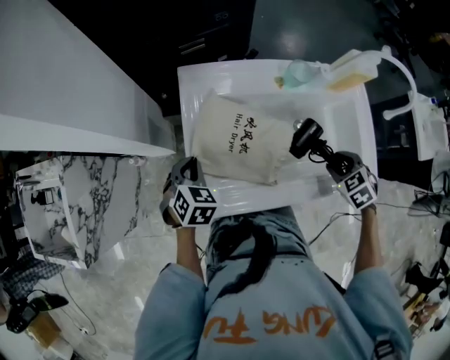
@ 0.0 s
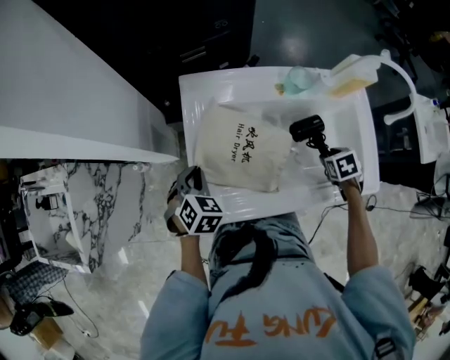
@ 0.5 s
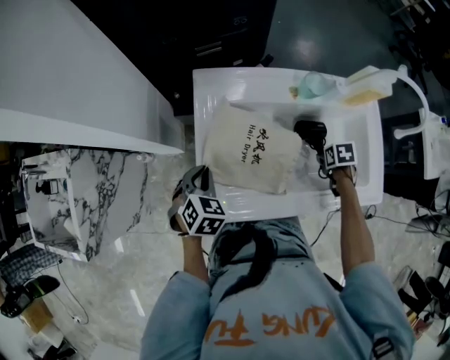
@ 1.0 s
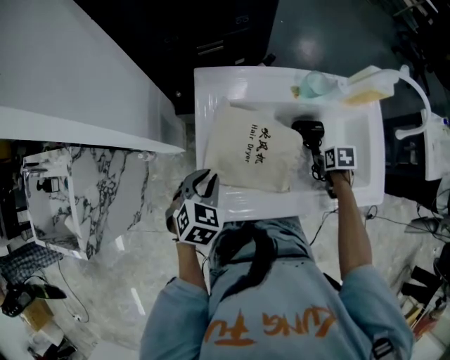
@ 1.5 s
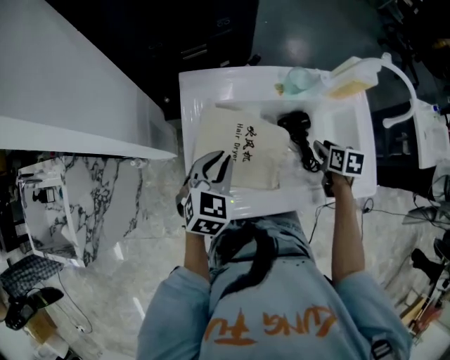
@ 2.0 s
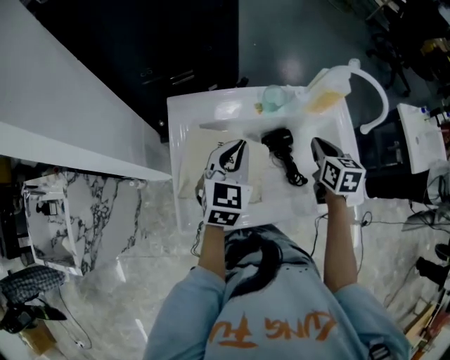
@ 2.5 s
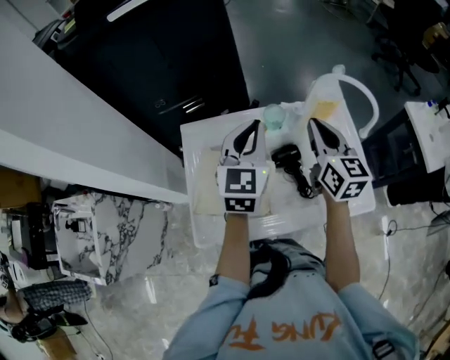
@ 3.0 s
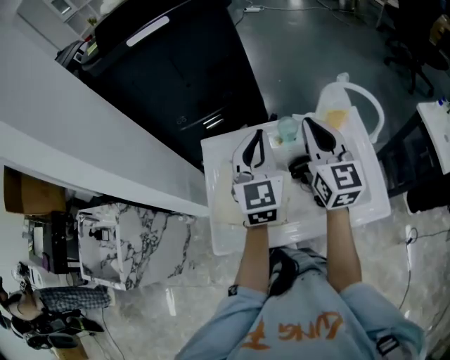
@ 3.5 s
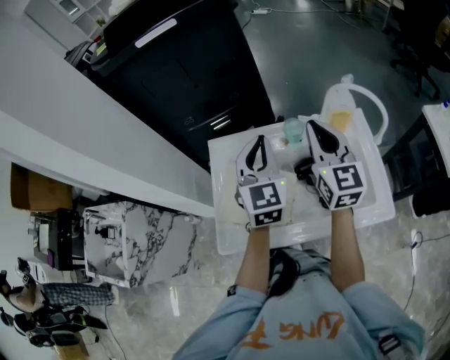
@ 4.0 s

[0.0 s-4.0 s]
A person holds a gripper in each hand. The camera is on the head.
0.0 to 2.0 s: The right gripper reaches about 10 cm downward, then returns, and rotates around the line of its fingers by roughly 50 degrees, clockwise from behind. Meanwhile the left gripper shifts by some 10 cm, and swivels about 20 degrees.
2.0 to 4.0 s: The right gripper shifts about 30 cm upward, points its fingers approximately 60 degrees further upward, and closes up. The left gripper is displaced upward, to the right and forward by approximately 25 cm, and turns by approximately 40 degrees.

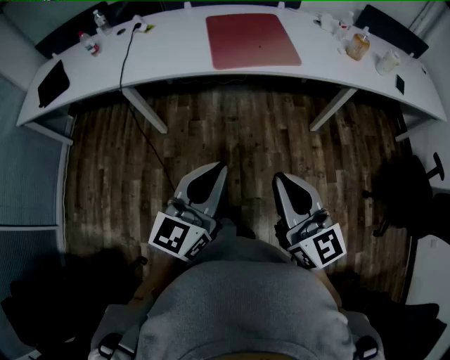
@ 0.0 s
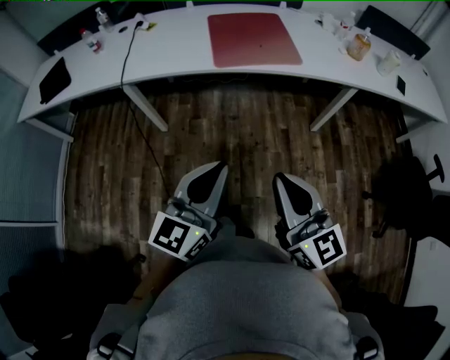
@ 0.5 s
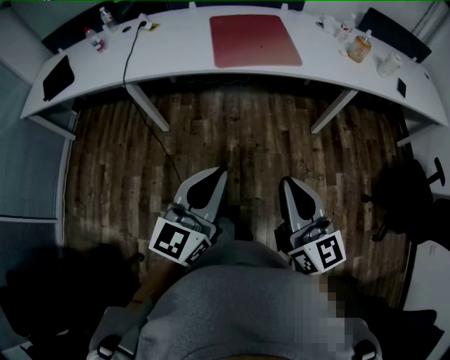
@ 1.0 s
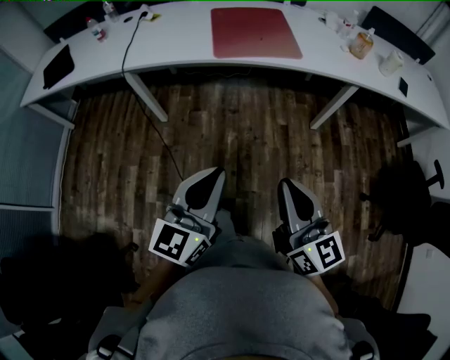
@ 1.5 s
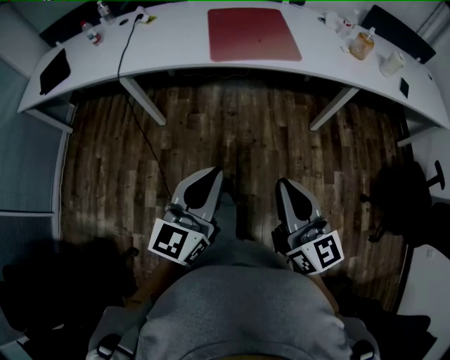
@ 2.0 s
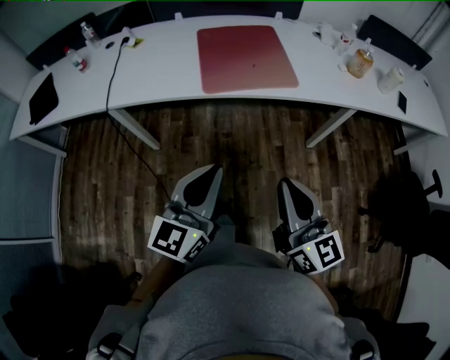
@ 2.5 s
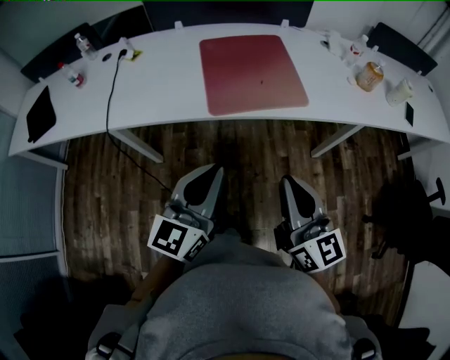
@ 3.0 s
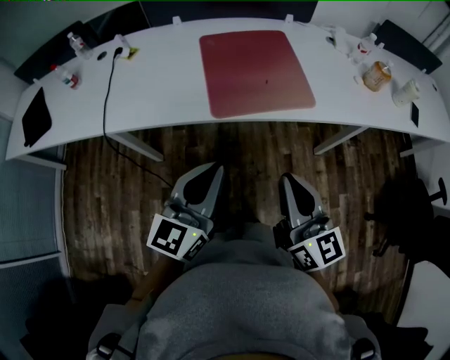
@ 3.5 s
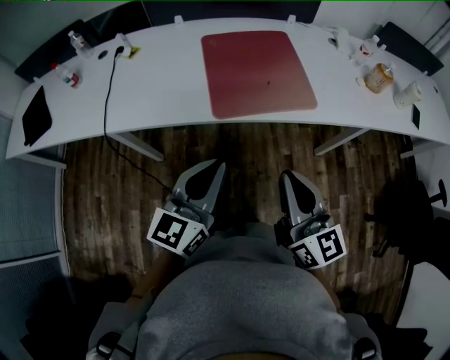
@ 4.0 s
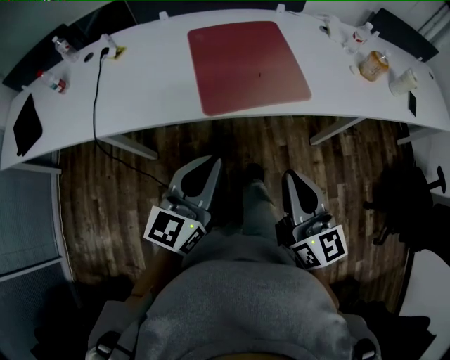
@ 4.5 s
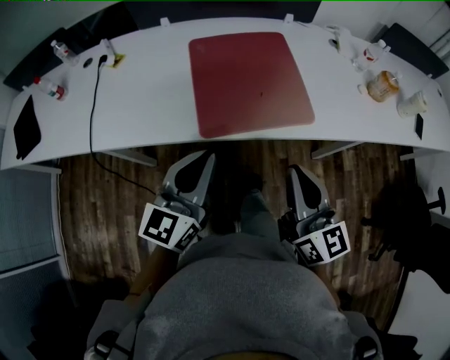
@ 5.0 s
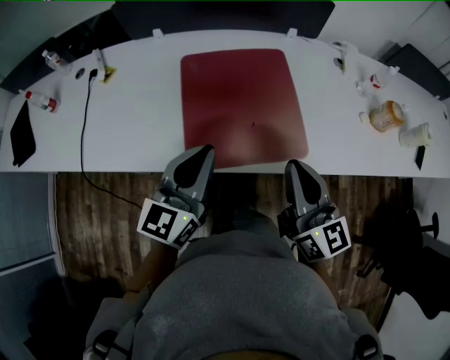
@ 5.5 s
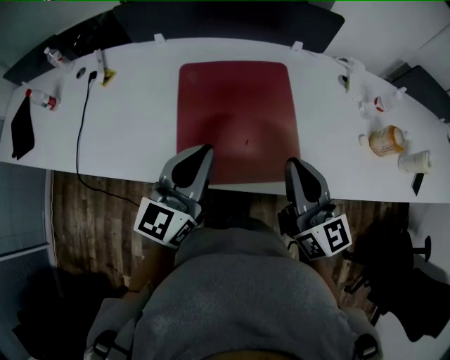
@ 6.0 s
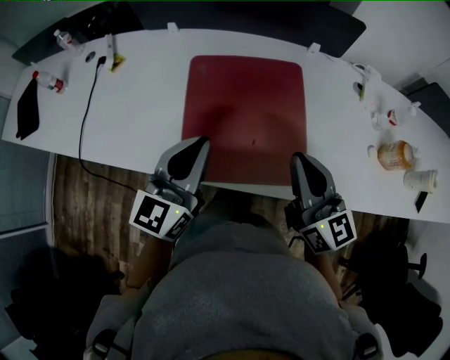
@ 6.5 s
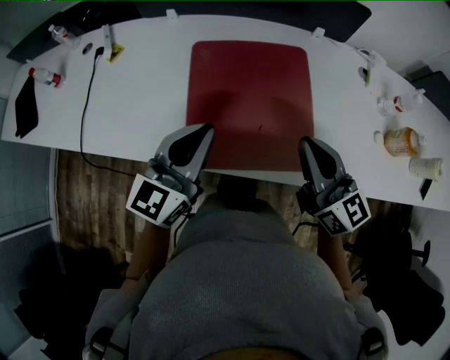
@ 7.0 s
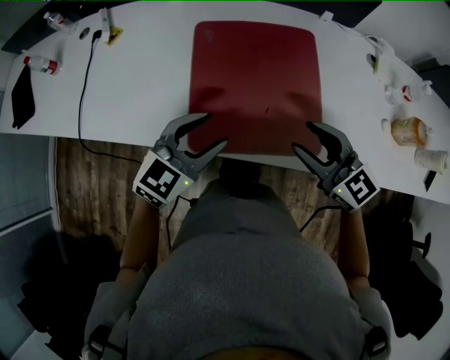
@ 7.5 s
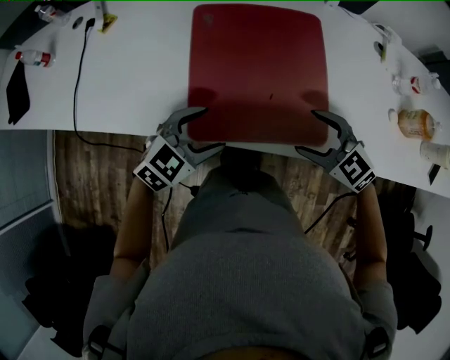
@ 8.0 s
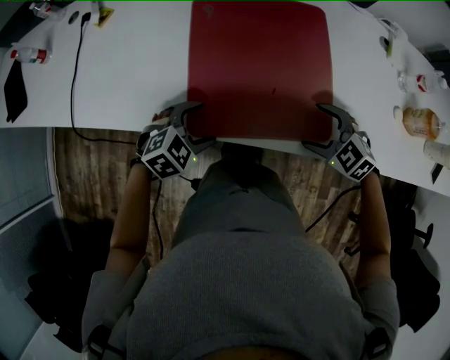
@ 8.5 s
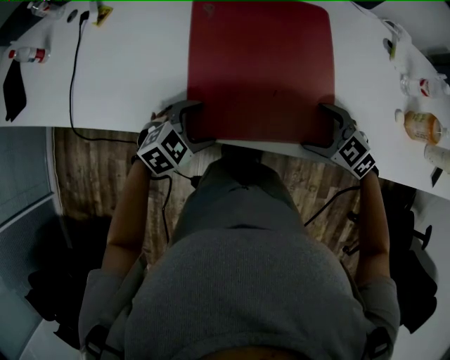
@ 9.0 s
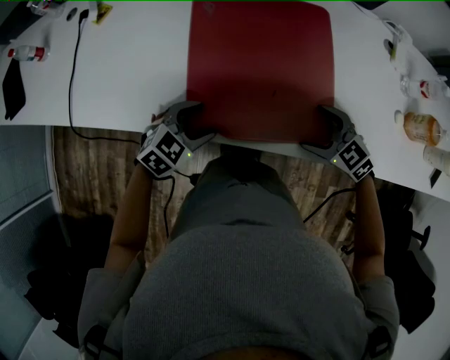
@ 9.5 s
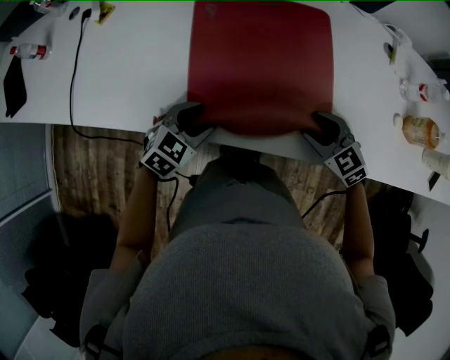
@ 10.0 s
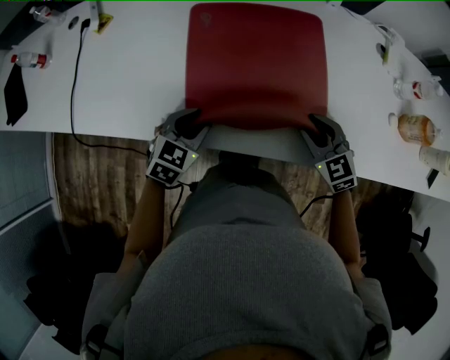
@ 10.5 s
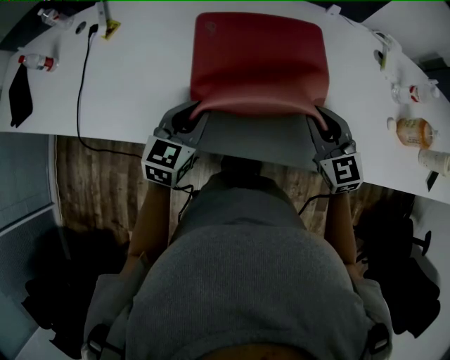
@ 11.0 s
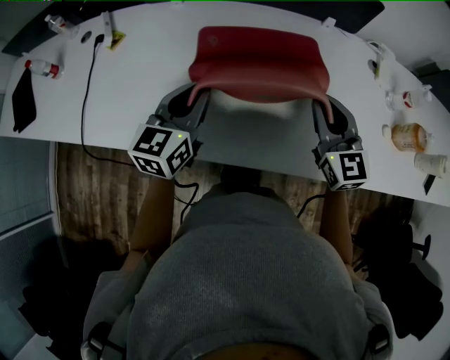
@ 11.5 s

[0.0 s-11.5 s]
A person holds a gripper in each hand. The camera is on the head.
0.0 to 2.0 s: The right gripper moves roughly 5 cm.
2.0 to 4.0 s: The grippers both shift forward by approximately 25 cm.
4.0 to 6.0 s: Both grippers move forward, roughly 30 cm.
6.0 to 7.5 s: The two grippers go approximately 10 cm downward. The left gripper swivels roughly 30 degrees, and opens up, while the right gripper rotates approximately 40 degrees, and opens up.
7.5 to 9.5 s: The grippers both shift downward by some 15 cm. The right gripper changes its angle by some 30 degrees, and opens its fingers, while the left gripper turns by about 20 degrees.
9.5 to 11.5 s: Both grippers travel together upward and forward, approximately 20 cm. The left gripper angles its fingers upward, by approximately 30 degrees, and closes. The right gripper tilts its fingers approximately 40 degrees upward, and closes its fingers.

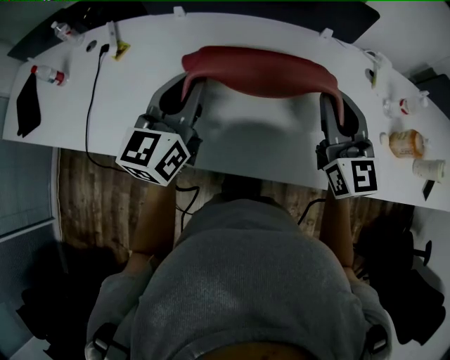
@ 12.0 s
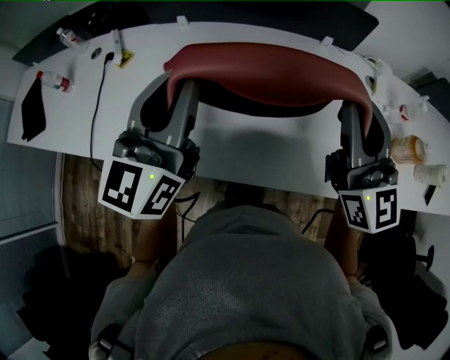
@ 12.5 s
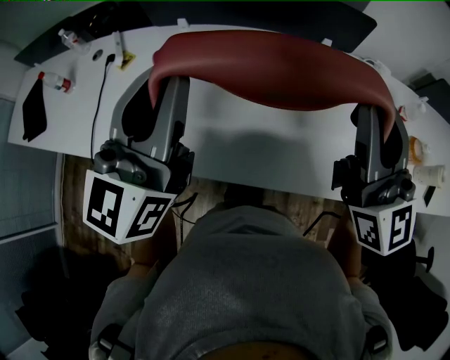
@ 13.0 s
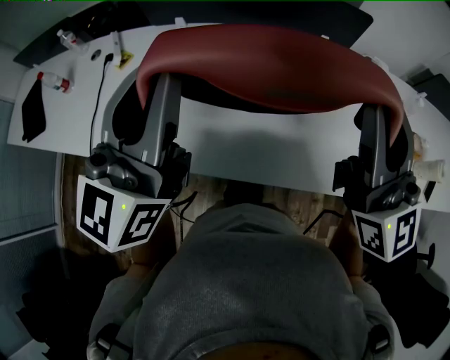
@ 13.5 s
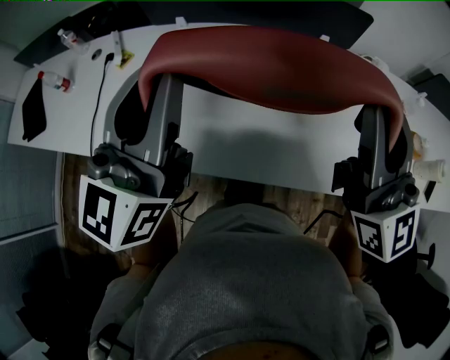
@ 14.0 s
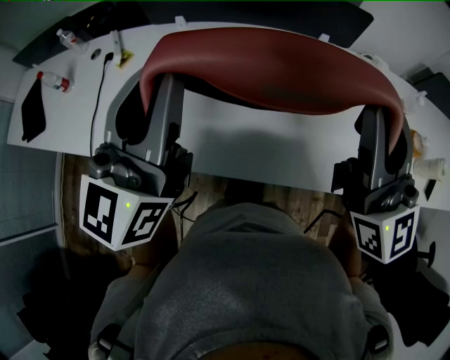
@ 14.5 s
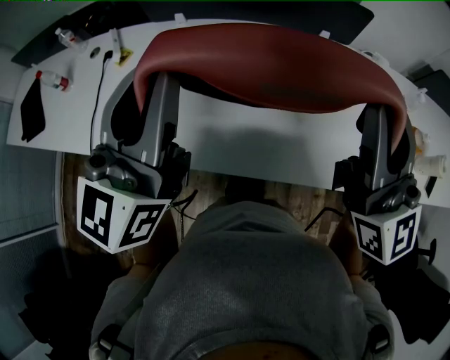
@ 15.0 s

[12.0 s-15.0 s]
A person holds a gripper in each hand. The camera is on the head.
12.0 to 13.5 s: The left gripper travels upward by some 15 cm; the right gripper shifts roughly 20 cm upward and backward.
13.5 to 15.0 s: Both grippers stay about where they are.

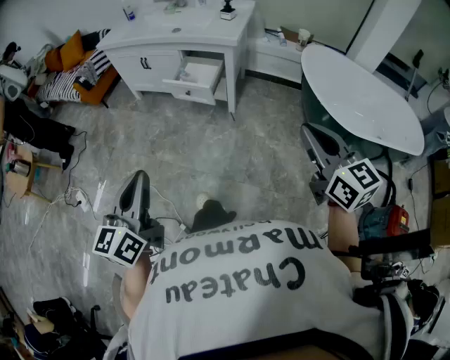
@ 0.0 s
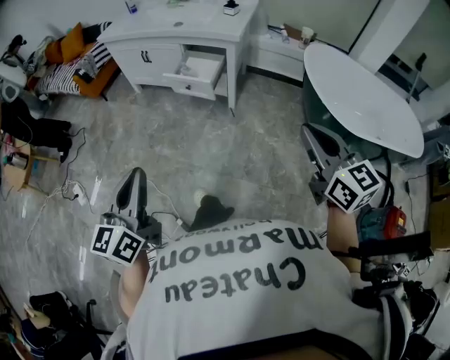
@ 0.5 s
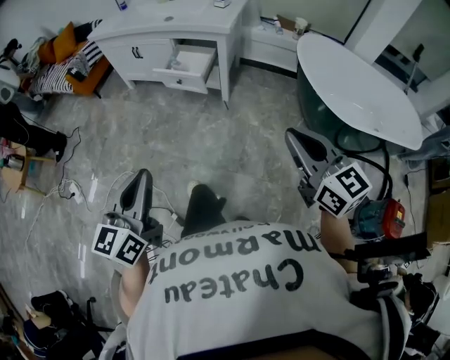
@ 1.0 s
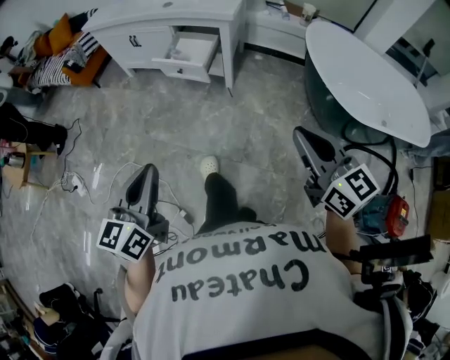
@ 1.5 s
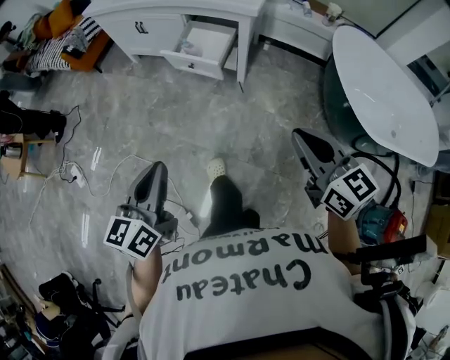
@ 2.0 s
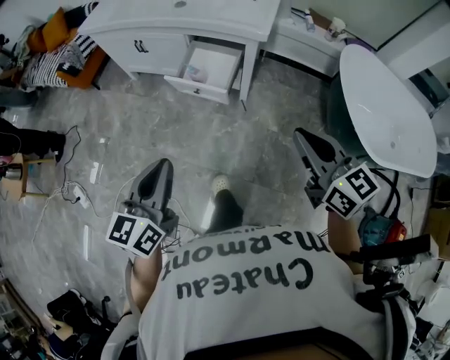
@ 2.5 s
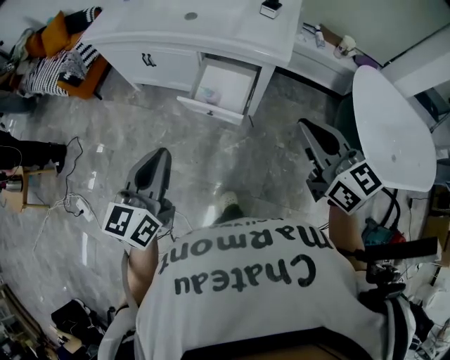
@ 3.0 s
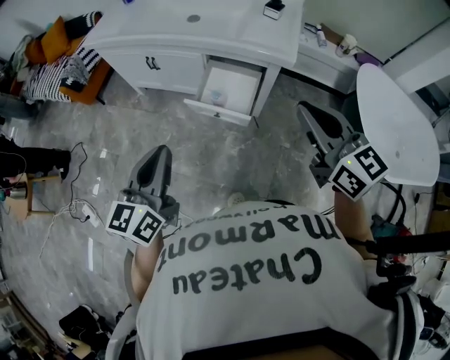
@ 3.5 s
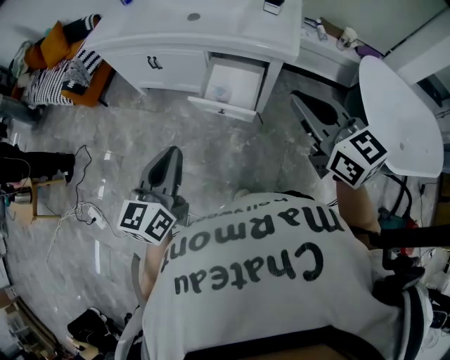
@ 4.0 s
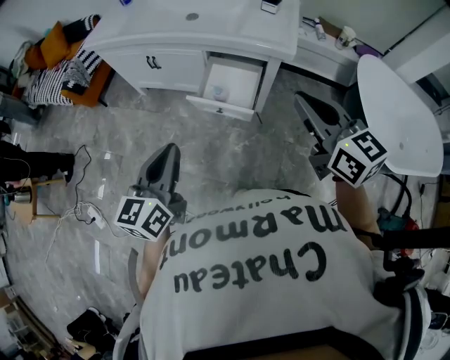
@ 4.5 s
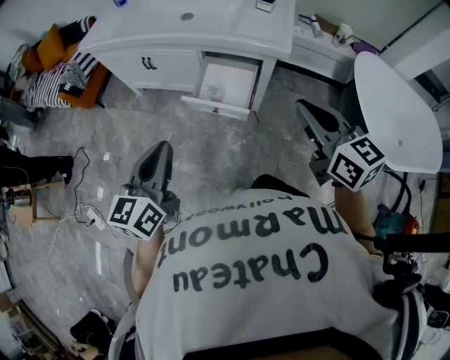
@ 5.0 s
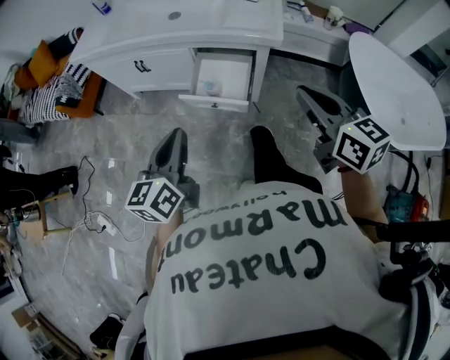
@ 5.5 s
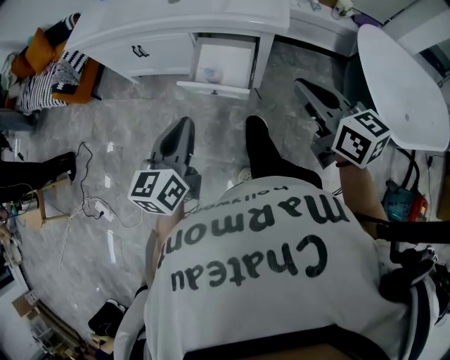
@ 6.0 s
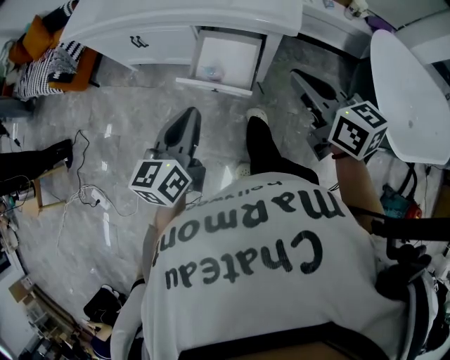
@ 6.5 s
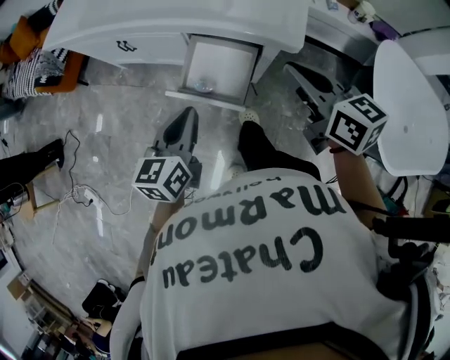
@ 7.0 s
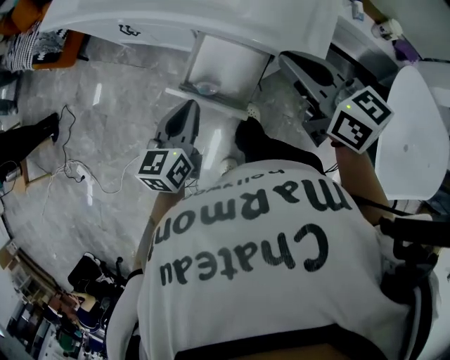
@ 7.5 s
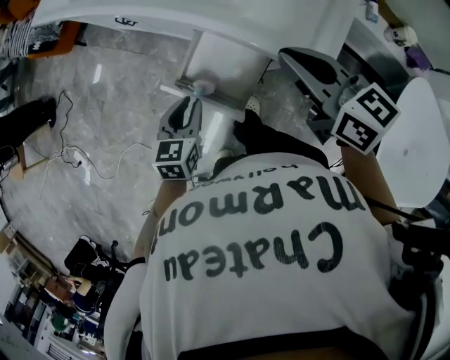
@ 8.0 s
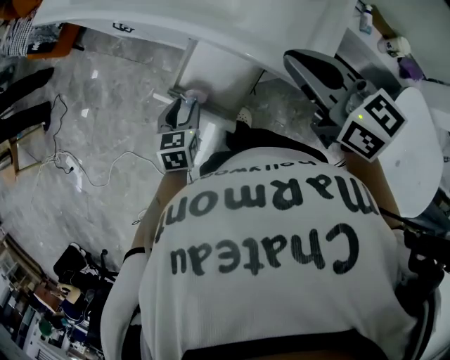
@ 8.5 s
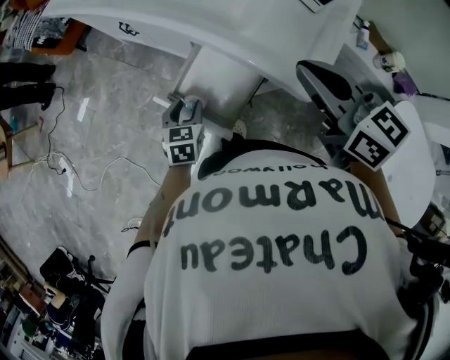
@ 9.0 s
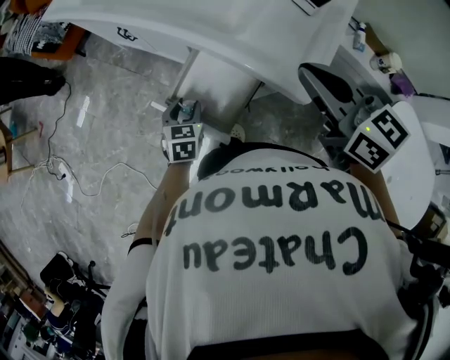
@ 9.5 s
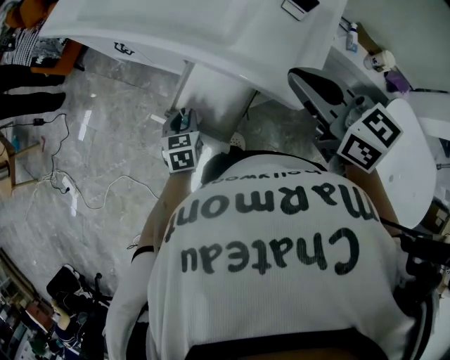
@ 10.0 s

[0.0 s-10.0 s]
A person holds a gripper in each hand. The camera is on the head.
0.0 to 2.0 s: The two grippers go some 15 cm forward and downward.
2.0 to 4.0 s: The left gripper goes about 25 cm forward, while the right gripper goes about 30 cm forward and to the left.
4.0 to 6.0 s: The right gripper goes some 5 cm downward, while the left gripper shifts by approximately 5 cm.
6.0 to 8.0 s: The right gripper travels forward by about 30 cm, and turns by roughly 30 degrees. The left gripper is displaced forward and downward by roughly 25 cm, and swivels approximately 30 degrees.
8.0 to 10.0 s: The left gripper travels downward and forward by about 10 cm.
